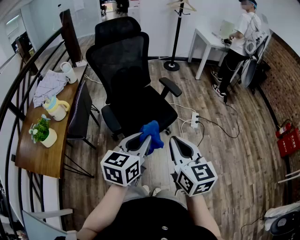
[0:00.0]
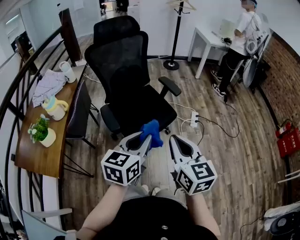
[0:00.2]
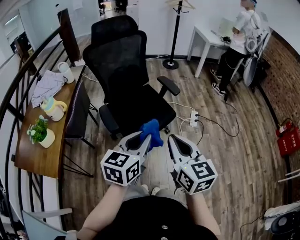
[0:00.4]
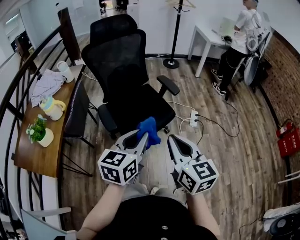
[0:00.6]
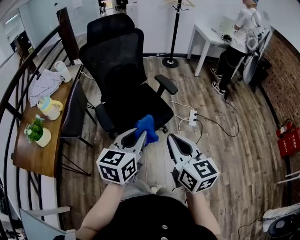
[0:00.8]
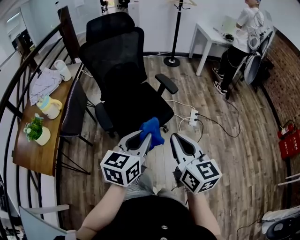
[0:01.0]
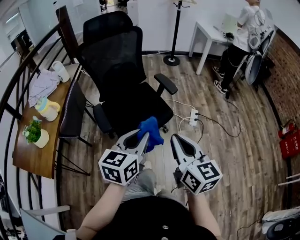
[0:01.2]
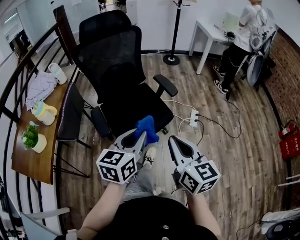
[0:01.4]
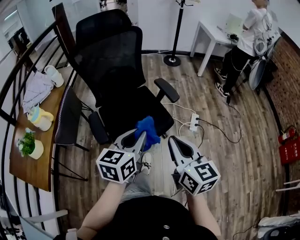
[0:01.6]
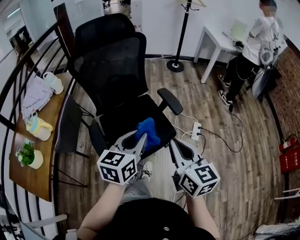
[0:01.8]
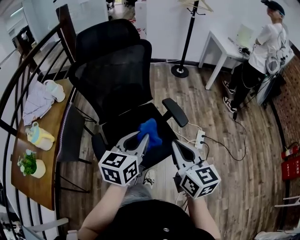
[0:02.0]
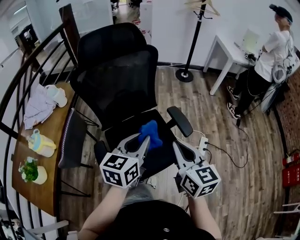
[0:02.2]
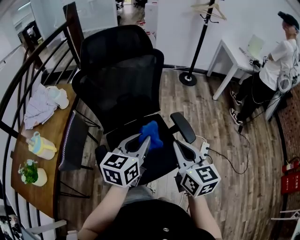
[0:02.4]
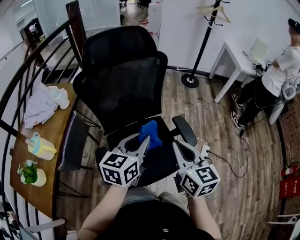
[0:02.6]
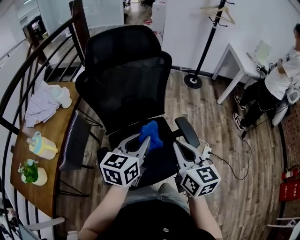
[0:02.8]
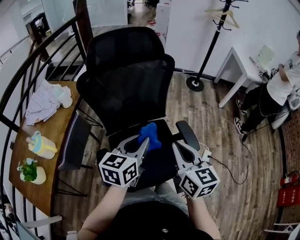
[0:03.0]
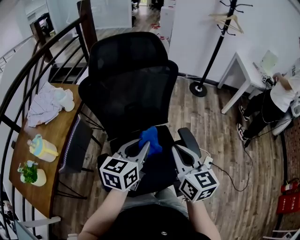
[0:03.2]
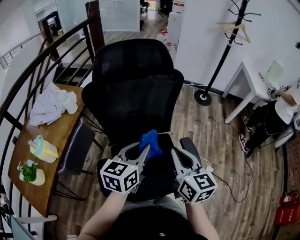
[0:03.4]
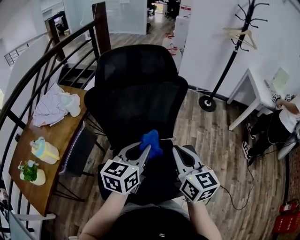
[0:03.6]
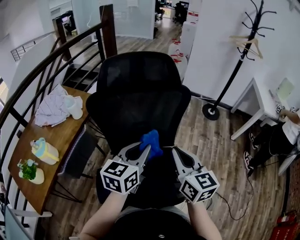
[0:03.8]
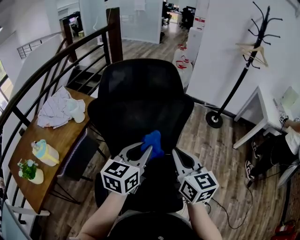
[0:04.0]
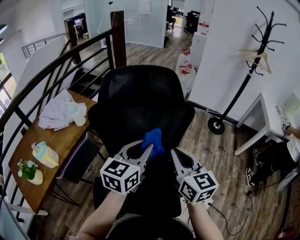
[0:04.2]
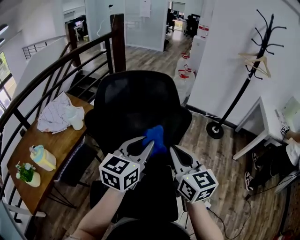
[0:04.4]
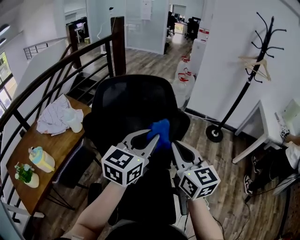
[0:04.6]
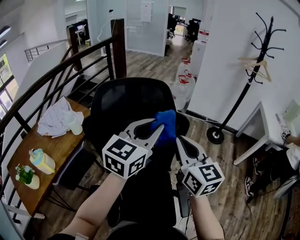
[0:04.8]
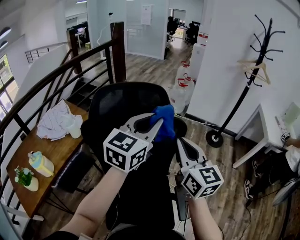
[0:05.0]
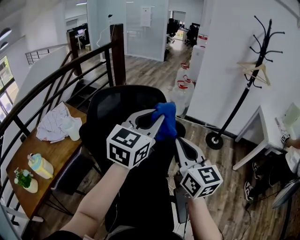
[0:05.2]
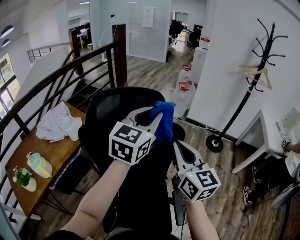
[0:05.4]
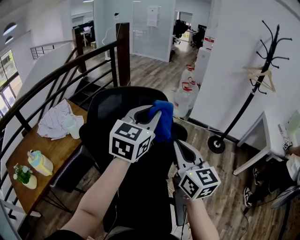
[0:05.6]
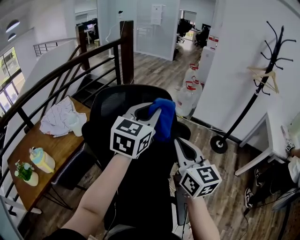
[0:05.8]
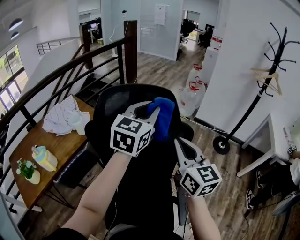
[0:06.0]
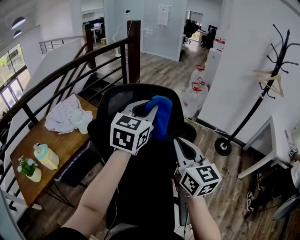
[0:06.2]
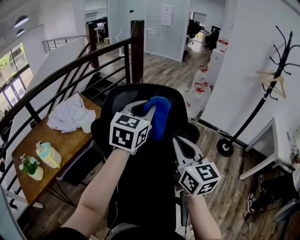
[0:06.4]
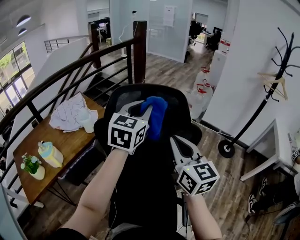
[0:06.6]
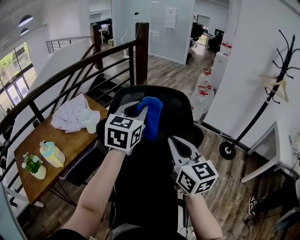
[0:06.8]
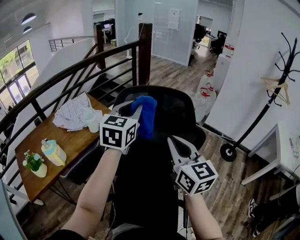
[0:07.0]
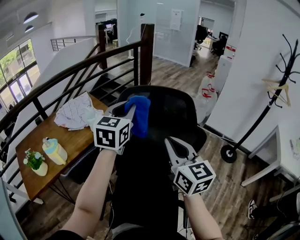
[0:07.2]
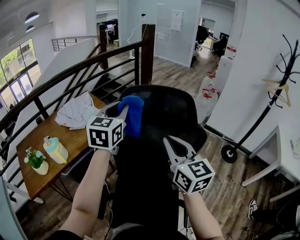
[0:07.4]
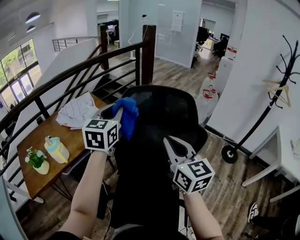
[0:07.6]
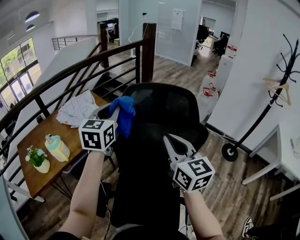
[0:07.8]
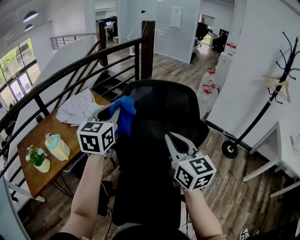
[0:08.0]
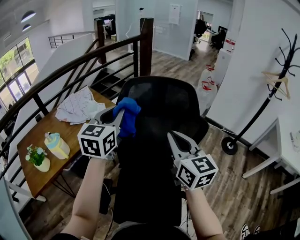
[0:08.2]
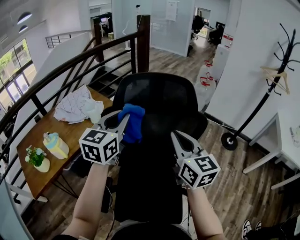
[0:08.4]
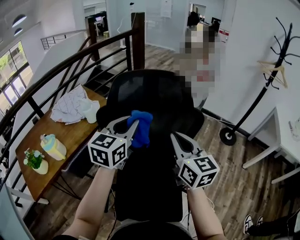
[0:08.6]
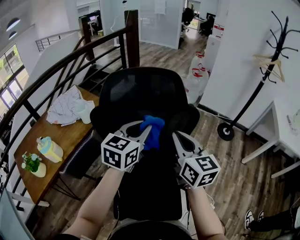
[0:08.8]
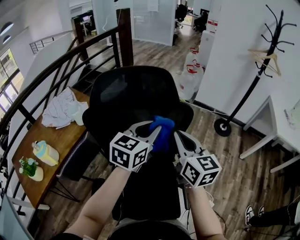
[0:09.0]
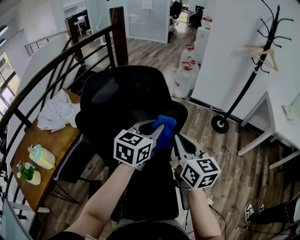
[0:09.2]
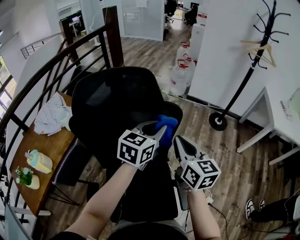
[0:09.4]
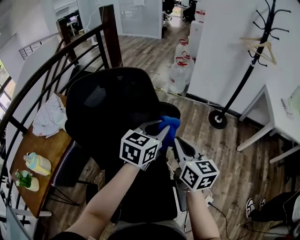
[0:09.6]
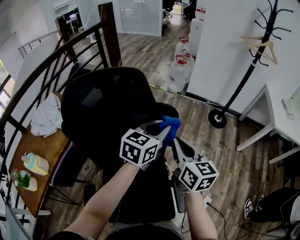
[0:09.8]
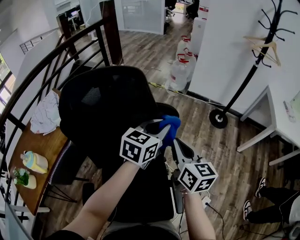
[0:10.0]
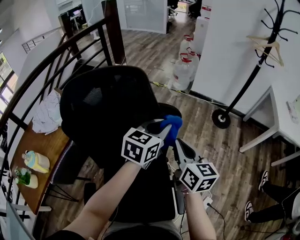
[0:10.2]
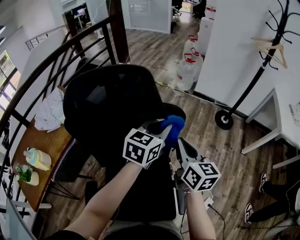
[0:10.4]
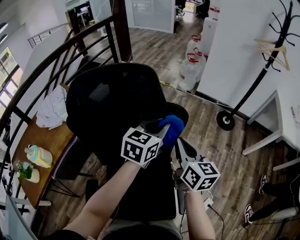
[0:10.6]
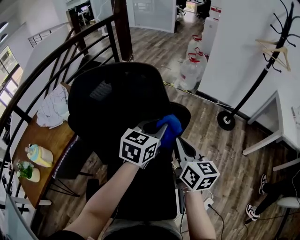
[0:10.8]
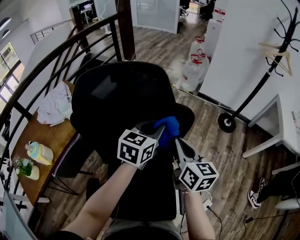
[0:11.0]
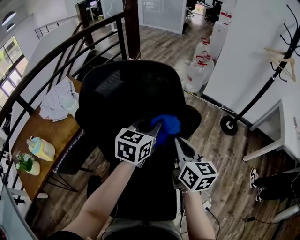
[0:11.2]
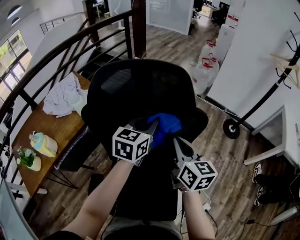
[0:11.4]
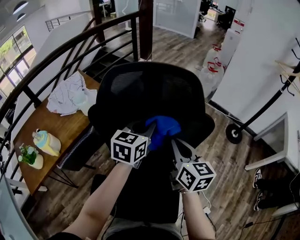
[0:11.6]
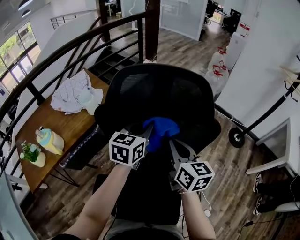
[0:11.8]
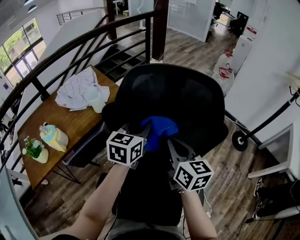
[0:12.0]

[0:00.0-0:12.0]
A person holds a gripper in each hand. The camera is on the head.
0:00.0 to 0:01.6: The two grippers go roughly 15 cm forward.
0:01.6 to 0:03.0: The grippers both shift forward by roughly 30 cm.
0:03.0 to 0:04.4: The right gripper moves forward, roughly 20 cm, and swivels roughly 20 degrees; the left gripper shifts approximately 20 cm forward and upward.
0:04.4 to 0:06.0: The right gripper heads forward, covering approximately 10 cm. The left gripper travels forward and upward by some 20 cm.
0:06.0 to 0:07.6: The left gripper travels to the left by about 20 cm, and changes its angle by about 20 degrees; the right gripper shifts about 10 cm to the left.
0:07.6 to 0:09.0: The right gripper travels to the right and downward by approximately 10 cm, while the left gripper travels to the right and downward by some 25 cm, and rotates approximately 30 degrees.
0:09.0 to 0:10.4: The left gripper heads forward, to the right and downward, covering roughly 15 cm, while the right gripper travels downward, to the right and forward by about 10 cm.
0:10.4 to 0:12.0: The grippers both shift to the left by some 25 cm. The right gripper rotates approximately 20 degrees; the left gripper turns by approximately 30 degrees.

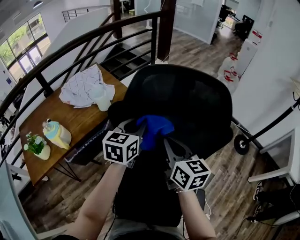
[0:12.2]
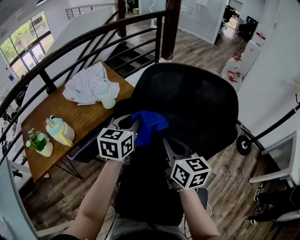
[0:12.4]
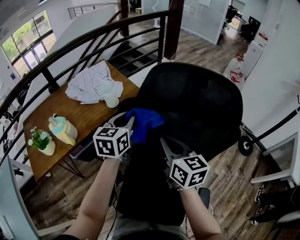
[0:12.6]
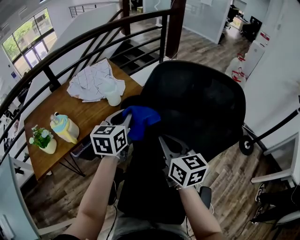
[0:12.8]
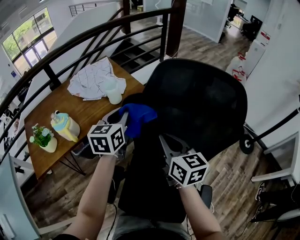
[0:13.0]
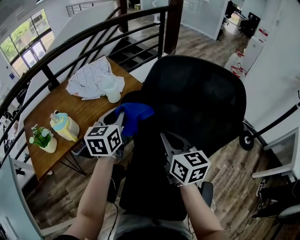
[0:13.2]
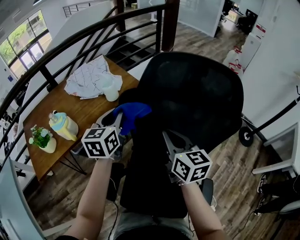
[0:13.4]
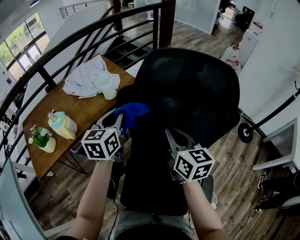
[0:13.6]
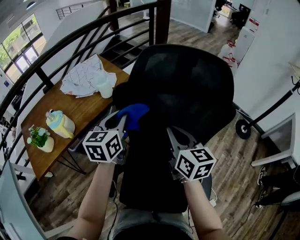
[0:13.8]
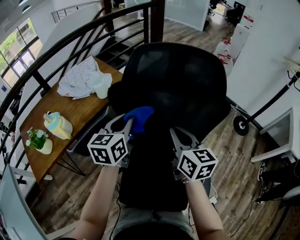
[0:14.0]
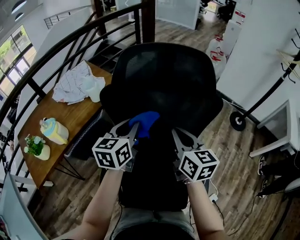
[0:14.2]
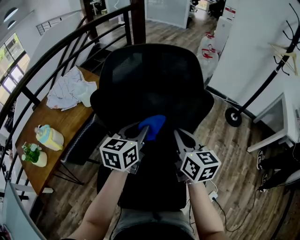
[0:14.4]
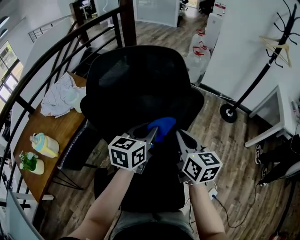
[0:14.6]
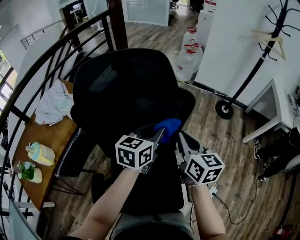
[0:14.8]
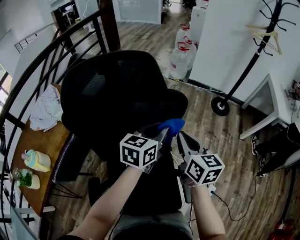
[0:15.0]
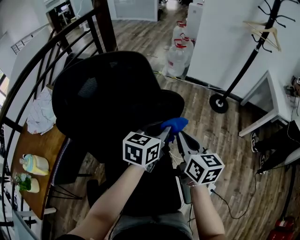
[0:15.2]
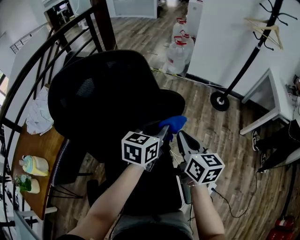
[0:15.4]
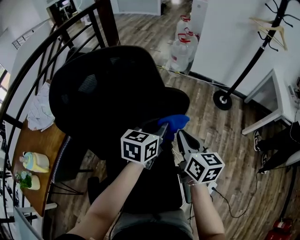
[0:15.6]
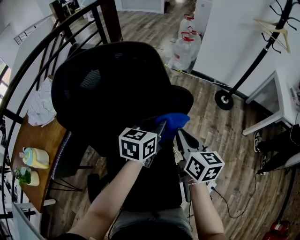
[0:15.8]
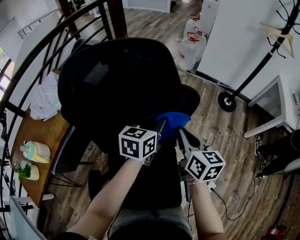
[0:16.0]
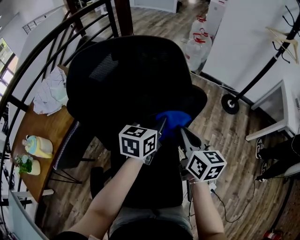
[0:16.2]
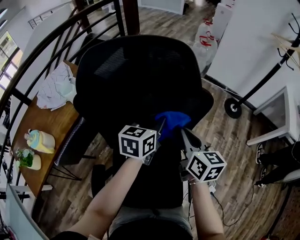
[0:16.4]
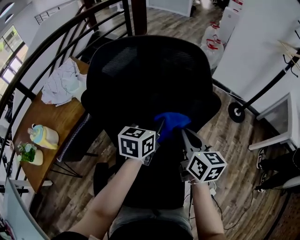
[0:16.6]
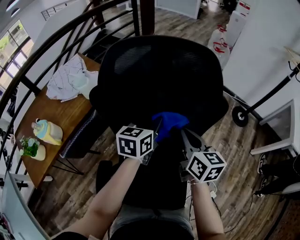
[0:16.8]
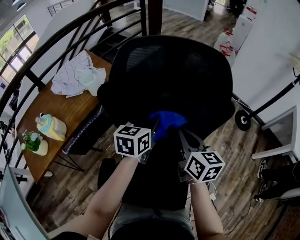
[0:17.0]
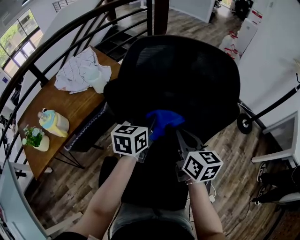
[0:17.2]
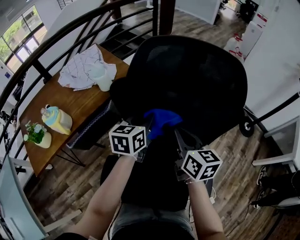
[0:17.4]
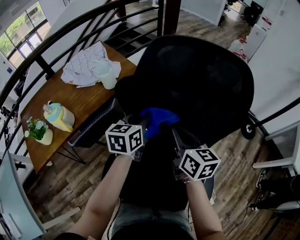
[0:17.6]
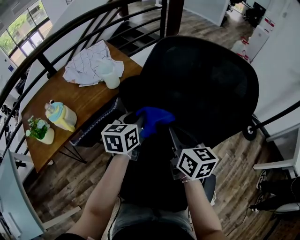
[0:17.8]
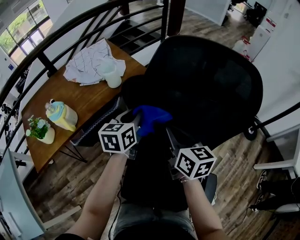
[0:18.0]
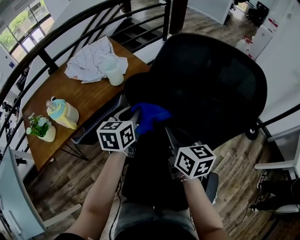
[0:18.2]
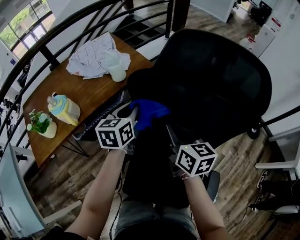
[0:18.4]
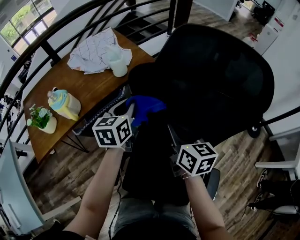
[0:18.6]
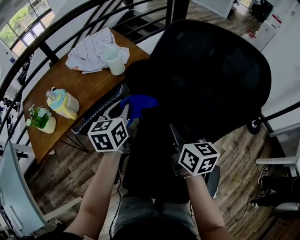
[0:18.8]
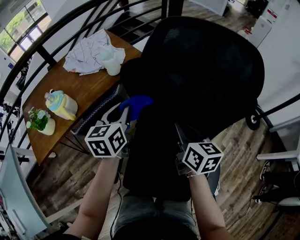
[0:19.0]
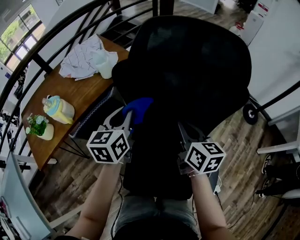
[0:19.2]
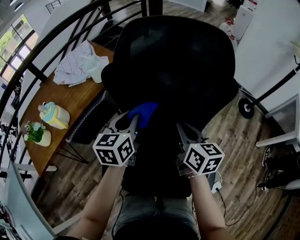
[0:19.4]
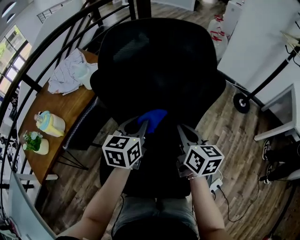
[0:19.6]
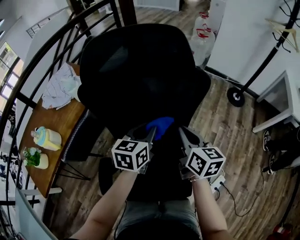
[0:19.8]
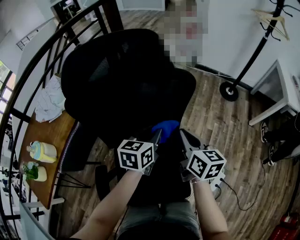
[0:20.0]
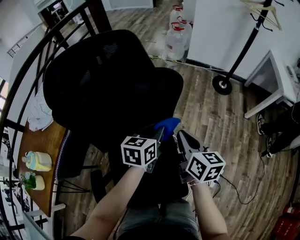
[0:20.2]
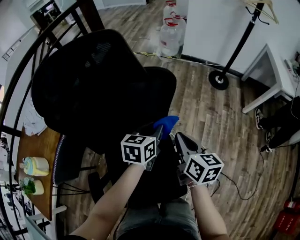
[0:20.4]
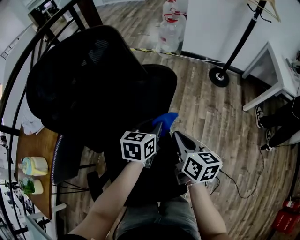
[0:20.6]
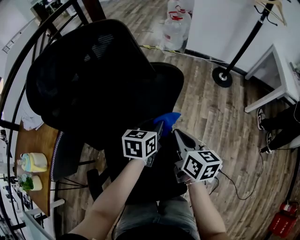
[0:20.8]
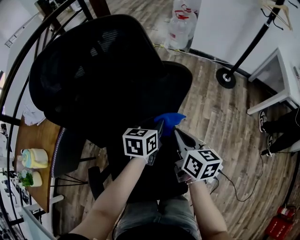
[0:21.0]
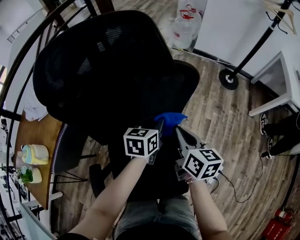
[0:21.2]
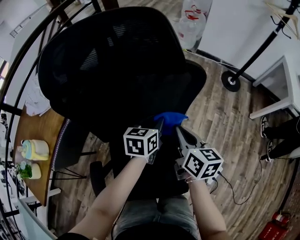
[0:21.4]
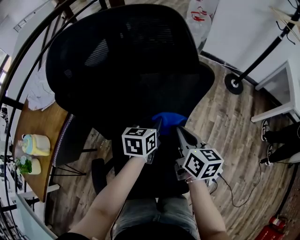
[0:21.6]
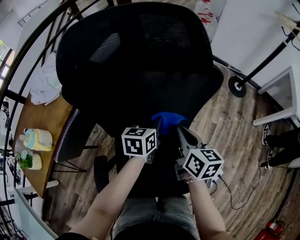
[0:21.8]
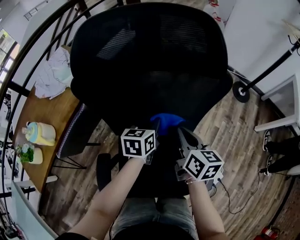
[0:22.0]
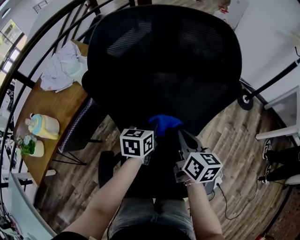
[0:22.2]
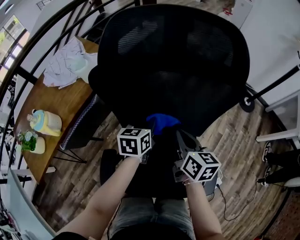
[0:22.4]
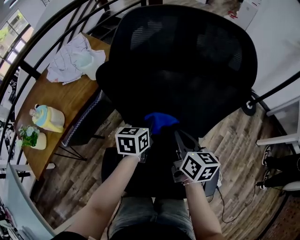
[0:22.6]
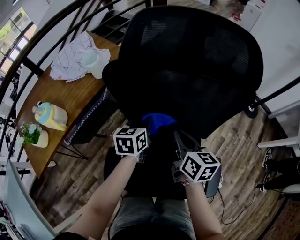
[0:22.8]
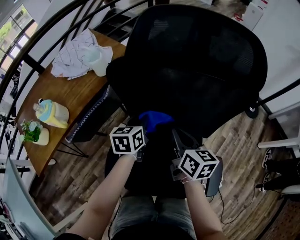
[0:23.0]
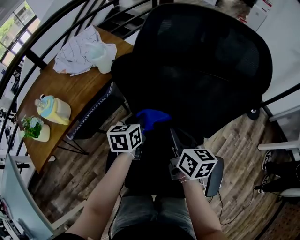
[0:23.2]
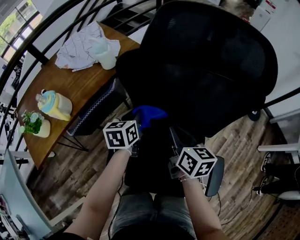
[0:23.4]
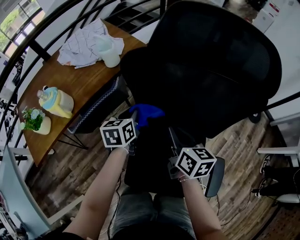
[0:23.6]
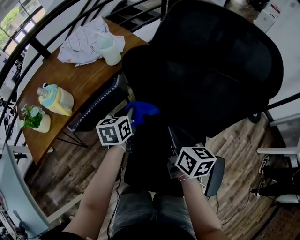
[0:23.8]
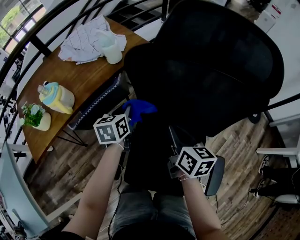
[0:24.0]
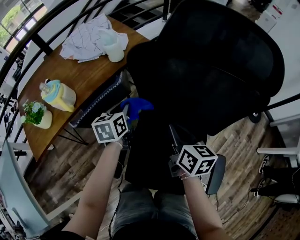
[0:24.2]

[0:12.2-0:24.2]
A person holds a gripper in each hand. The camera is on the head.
0:12.2 to 0:13.8: The left gripper heads to the left, covering about 10 cm.
0:13.8 to 0:15.2: The left gripper moves about 40 cm, and changes its angle by roughly 40 degrees; the right gripper changes place by about 25 cm, and turns by about 30 degrees.
0:15.2 to 0:16.6: Both grippers travel together to the left, approximately 10 cm.
0:16.6 to 0:18.2: Both grippers move to the left, some 25 cm. The right gripper changes its angle by about 20 degrees. The left gripper turns by approximately 20 degrees.
0:18.2 to 0:19.8: The right gripper changes place by approximately 20 cm, and turns by approximately 20 degrees; the left gripper changes place by about 25 cm, and turns by some 30 degrees.
0:19.8 to 0:21.2: The left gripper travels downward, to the right and forward by about 15 cm. The right gripper travels downward by some 5 cm.
0:21.2 to 0:22.6: The two grippers go approximately 20 cm to the left.
0:22.6 to 0:24.2: The right gripper is displaced to the left by roughly 10 cm; the left gripper shifts roughly 20 cm to the left, and turns by roughly 20 degrees.
